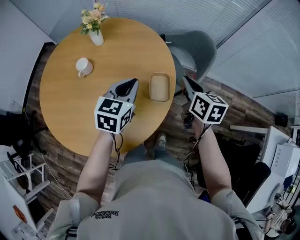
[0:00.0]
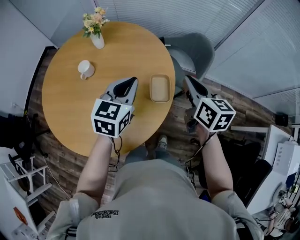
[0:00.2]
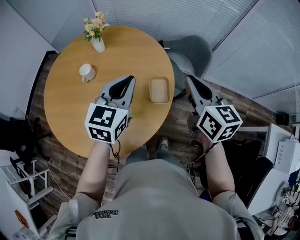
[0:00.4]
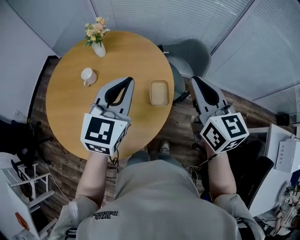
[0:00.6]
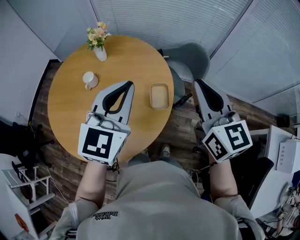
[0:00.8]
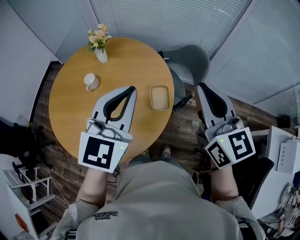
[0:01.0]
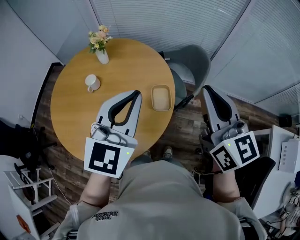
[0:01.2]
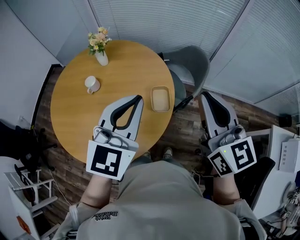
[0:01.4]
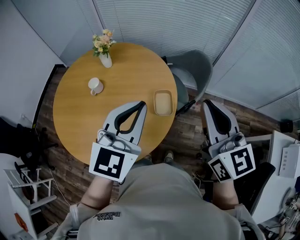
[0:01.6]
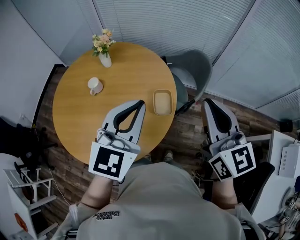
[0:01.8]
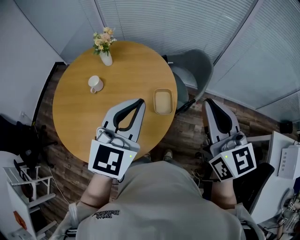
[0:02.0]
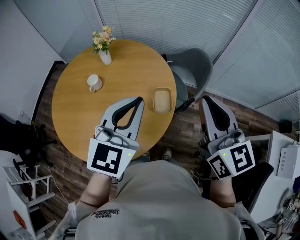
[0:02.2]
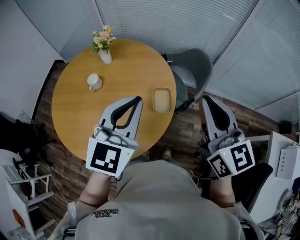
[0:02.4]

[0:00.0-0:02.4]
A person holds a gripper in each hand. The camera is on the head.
0:00.0 to 0:01.2: Both grippers move upward and backward, some 25 cm. The right gripper rotates roughly 30 degrees. The left gripper changes its angle by roughly 30 degrees.
0:01.2 to 0:02.4: The grippers stay close to where they were, moving slightly.

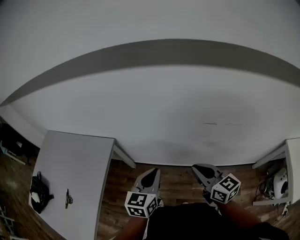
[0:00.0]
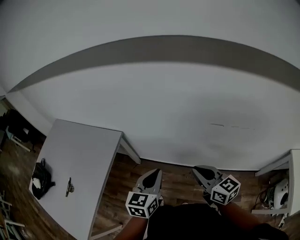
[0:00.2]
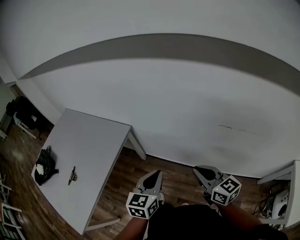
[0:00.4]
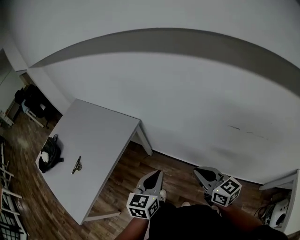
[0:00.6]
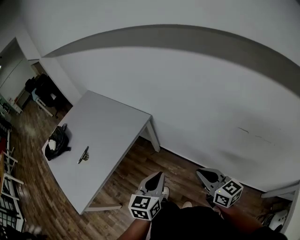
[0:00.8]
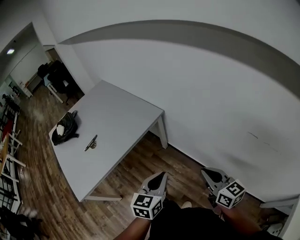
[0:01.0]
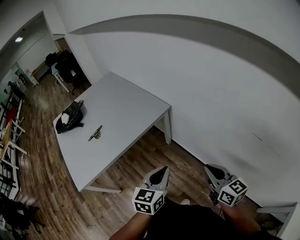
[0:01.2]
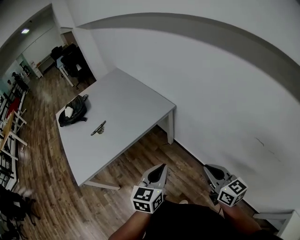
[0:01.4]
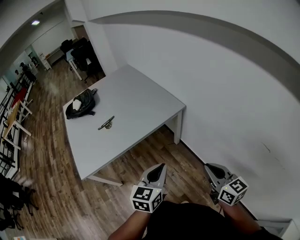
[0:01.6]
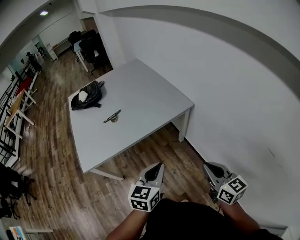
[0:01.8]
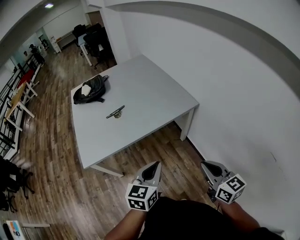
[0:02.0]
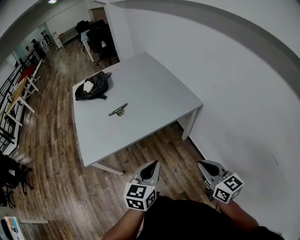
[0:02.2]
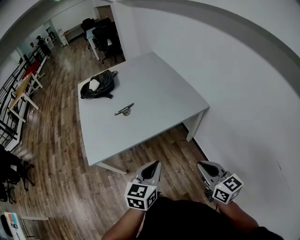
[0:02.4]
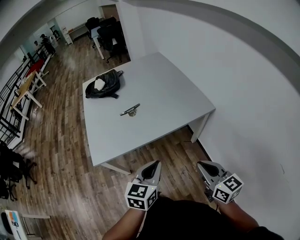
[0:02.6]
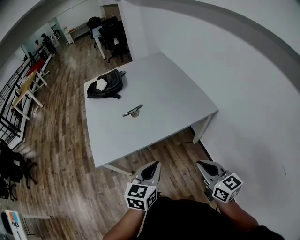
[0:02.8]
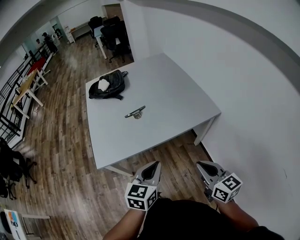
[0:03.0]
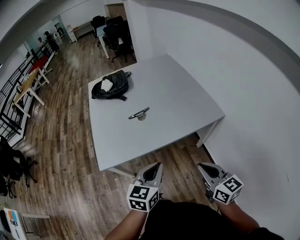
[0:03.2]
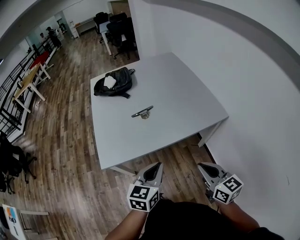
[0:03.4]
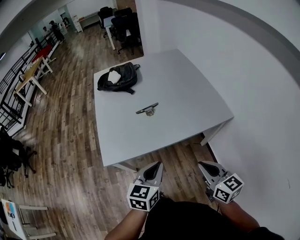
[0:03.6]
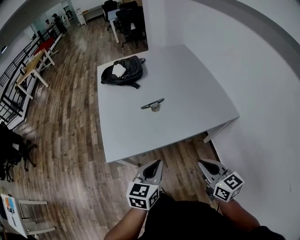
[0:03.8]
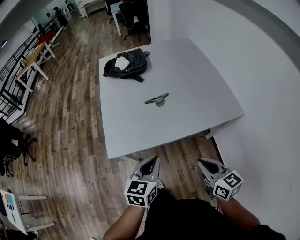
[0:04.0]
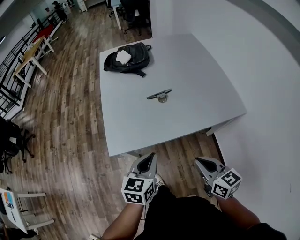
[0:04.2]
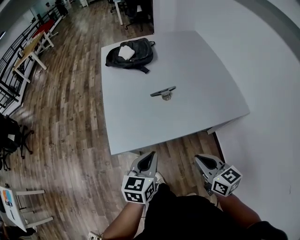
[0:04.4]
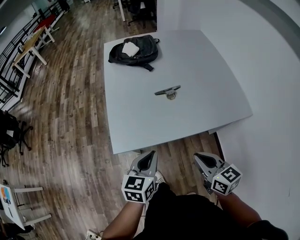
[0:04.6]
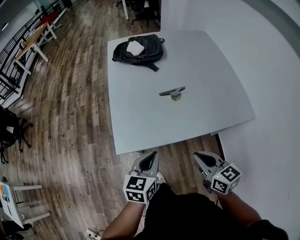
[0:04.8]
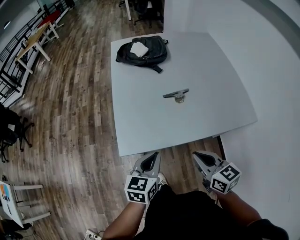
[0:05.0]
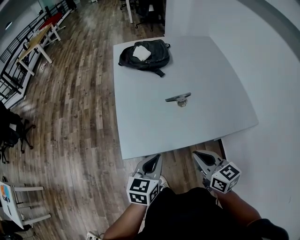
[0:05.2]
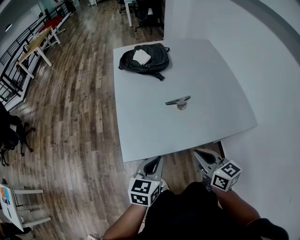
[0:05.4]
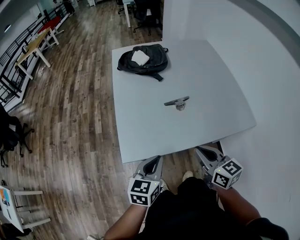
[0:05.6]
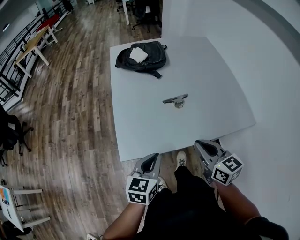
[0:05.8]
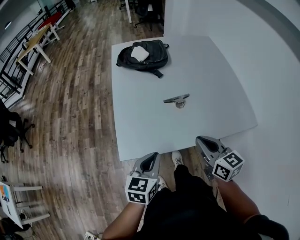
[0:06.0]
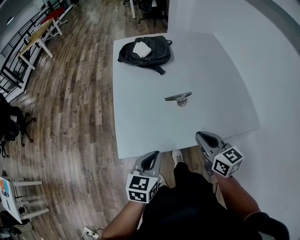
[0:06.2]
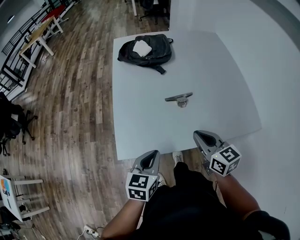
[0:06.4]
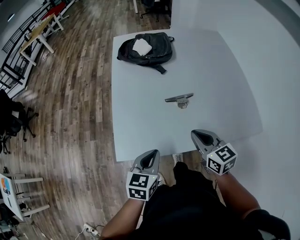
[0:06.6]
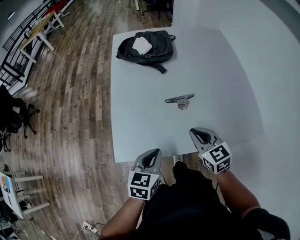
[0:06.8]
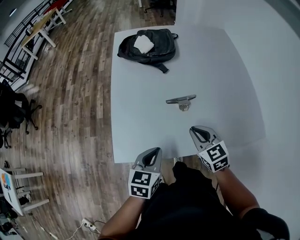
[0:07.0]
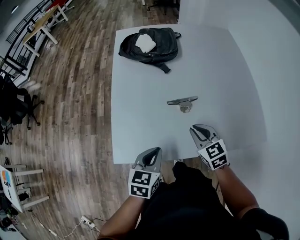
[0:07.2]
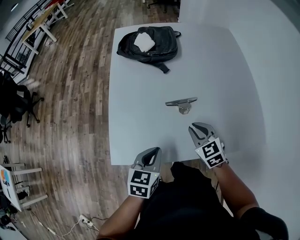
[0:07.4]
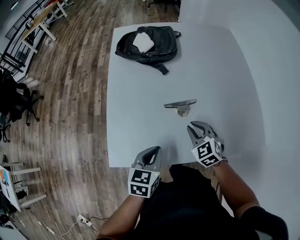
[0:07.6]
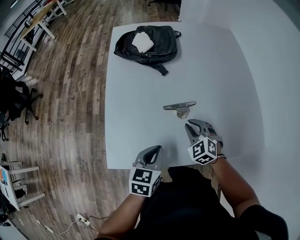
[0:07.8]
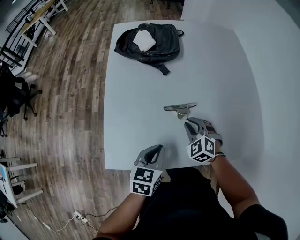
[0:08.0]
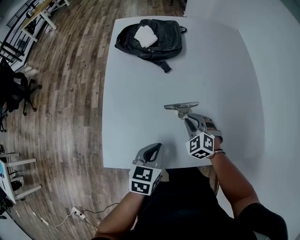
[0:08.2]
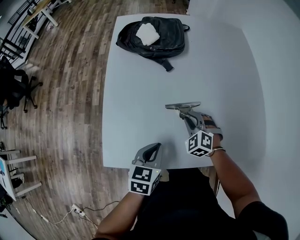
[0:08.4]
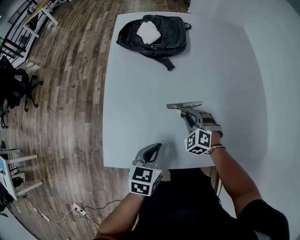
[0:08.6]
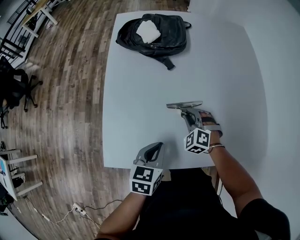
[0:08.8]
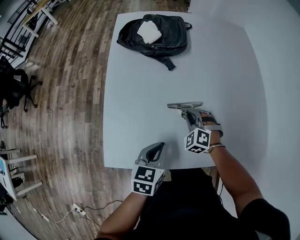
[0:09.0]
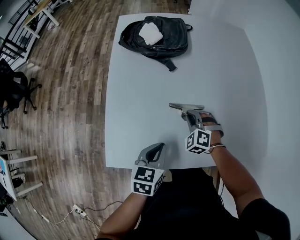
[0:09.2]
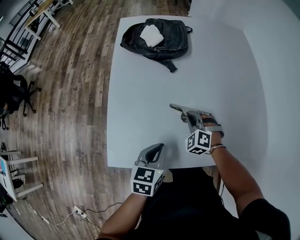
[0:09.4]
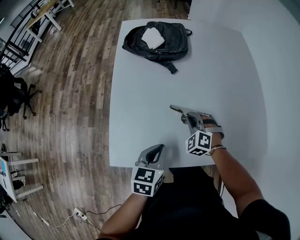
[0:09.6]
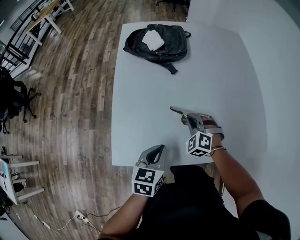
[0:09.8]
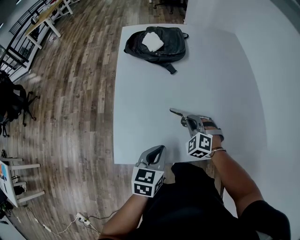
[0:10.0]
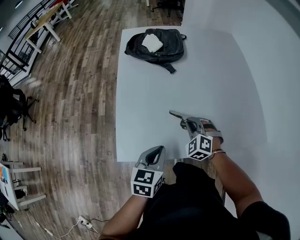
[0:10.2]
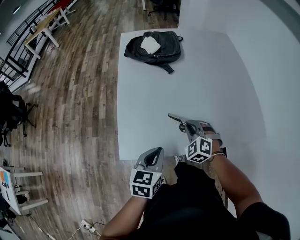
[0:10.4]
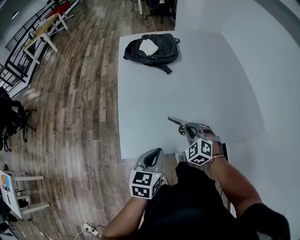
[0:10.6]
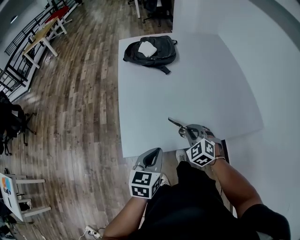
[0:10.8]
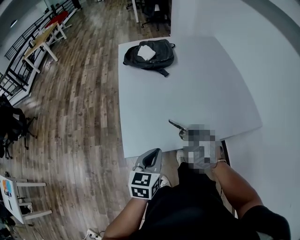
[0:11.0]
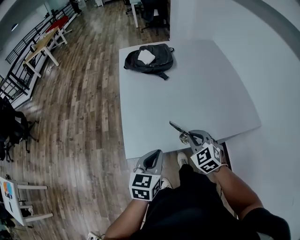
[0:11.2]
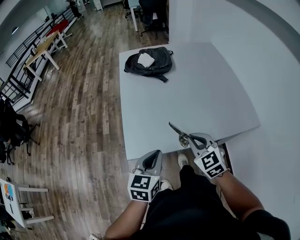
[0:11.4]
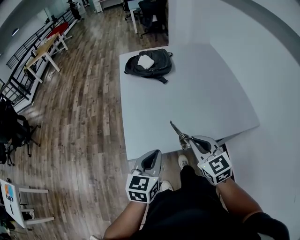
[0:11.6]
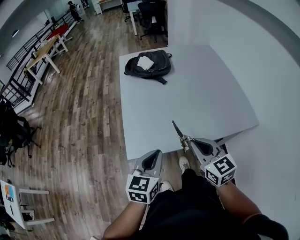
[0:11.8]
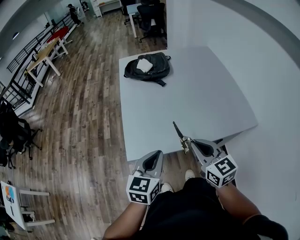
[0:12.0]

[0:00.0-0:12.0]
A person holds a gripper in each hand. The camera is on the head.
0:00.0 to 0:01.6: The right gripper changes place by roughly 15 cm, and rotates approximately 30 degrees. The left gripper changes place by some 25 cm, and turns by roughly 40 degrees.
0:01.6 to 0:03.0: The grippers both shift to the left and forward by approximately 20 cm.
0:03.0 to 0:04.4: The grippers both shift to the left, forward and downward by about 20 cm.
0:04.4 to 0:06.0: The right gripper travels forward by approximately 15 cm, while the left gripper shifts by about 5 cm.
0:06.0 to 0:07.6: The left gripper goes approximately 15 cm forward, downward and to the right, while the right gripper shifts approximately 25 cm forward and downward, and twists about 40 degrees counterclockwise, seen from behind.
0:07.6 to 0:09.0: The right gripper goes some 10 cm downward and forward, and swivels roughly 30 degrees. Meanwhile the left gripper shifts by some 5 cm.
0:09.0 to 0:10.4: Both grippers travel together backward and upward, some 15 cm.
0:10.4 to 0:12.0: The left gripper goes roughly 15 cm upward and backward, while the right gripper goes roughly 25 cm upward and backward, and twists some 50 degrees clockwise, seen from behind.

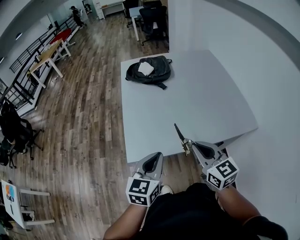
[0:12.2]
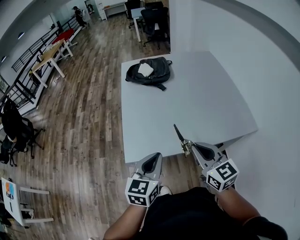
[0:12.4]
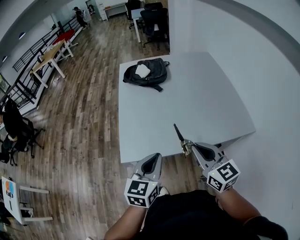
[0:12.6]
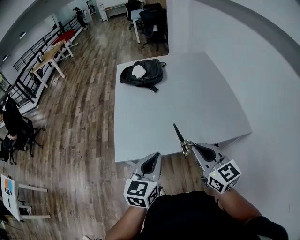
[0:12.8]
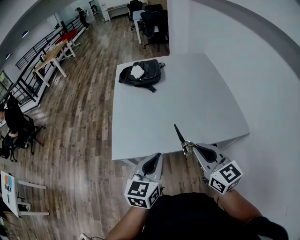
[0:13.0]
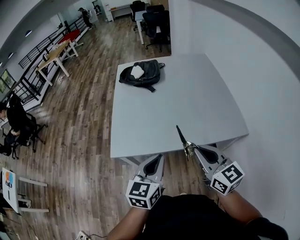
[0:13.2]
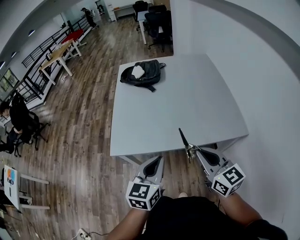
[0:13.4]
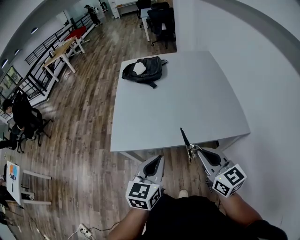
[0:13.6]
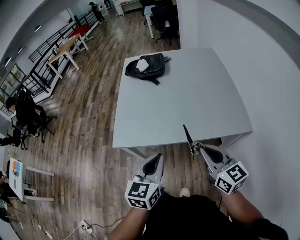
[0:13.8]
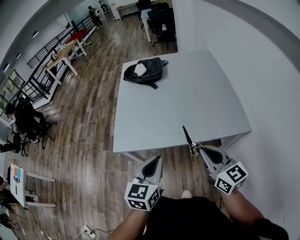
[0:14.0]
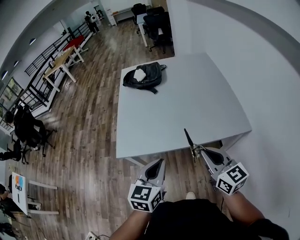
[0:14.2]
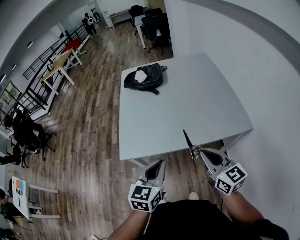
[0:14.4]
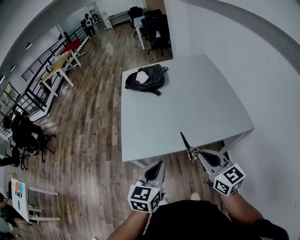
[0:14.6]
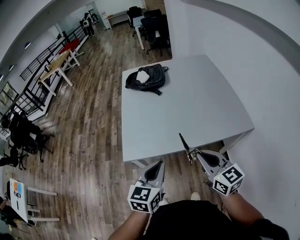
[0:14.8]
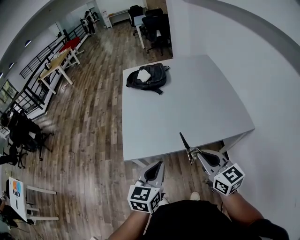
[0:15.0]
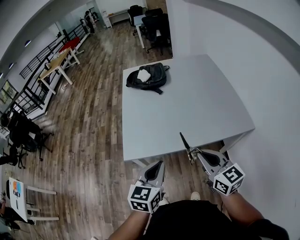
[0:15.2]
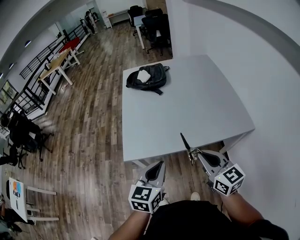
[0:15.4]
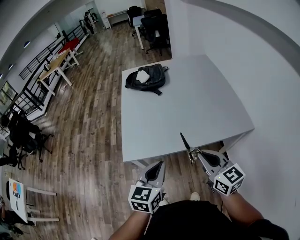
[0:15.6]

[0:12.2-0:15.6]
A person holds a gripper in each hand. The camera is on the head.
0:12.2 to 0:13.8: The grippers both shift to the right and backward by approximately 20 cm.
0:13.8 to 0:15.6: The two grippers go approximately 10 cm to the left.

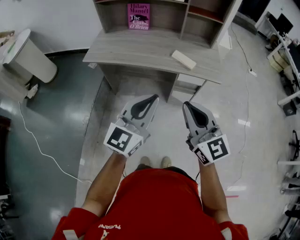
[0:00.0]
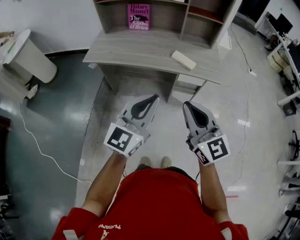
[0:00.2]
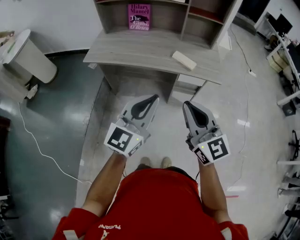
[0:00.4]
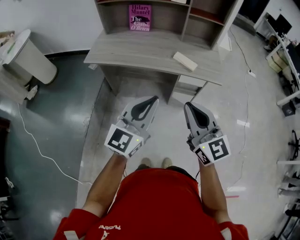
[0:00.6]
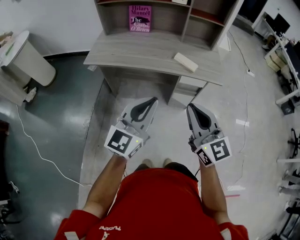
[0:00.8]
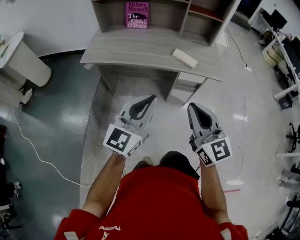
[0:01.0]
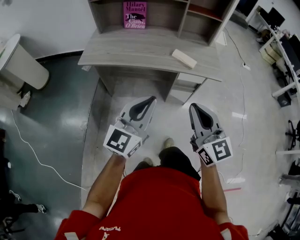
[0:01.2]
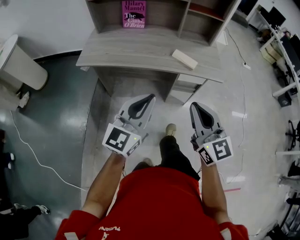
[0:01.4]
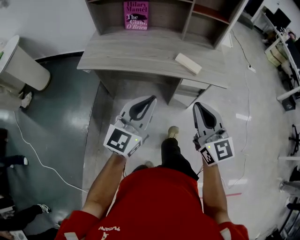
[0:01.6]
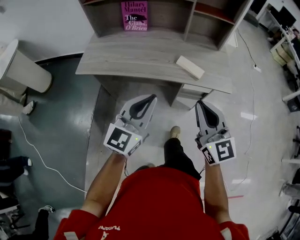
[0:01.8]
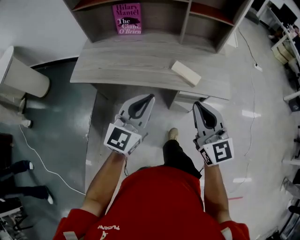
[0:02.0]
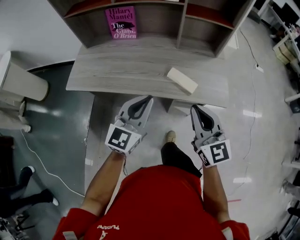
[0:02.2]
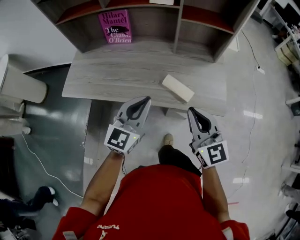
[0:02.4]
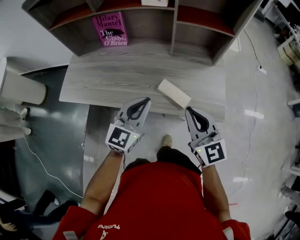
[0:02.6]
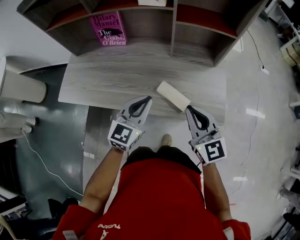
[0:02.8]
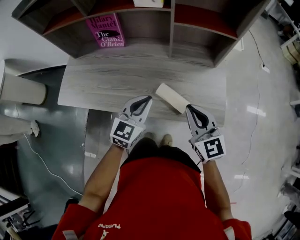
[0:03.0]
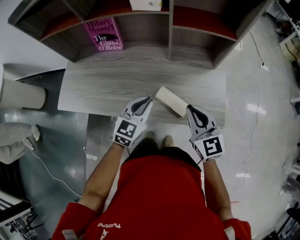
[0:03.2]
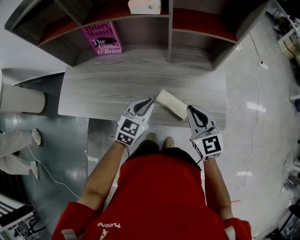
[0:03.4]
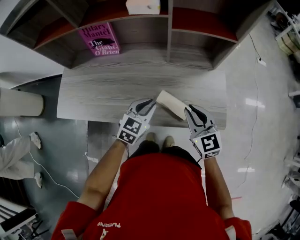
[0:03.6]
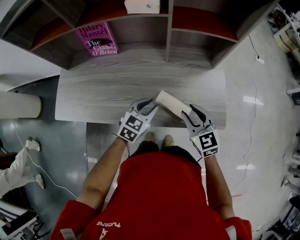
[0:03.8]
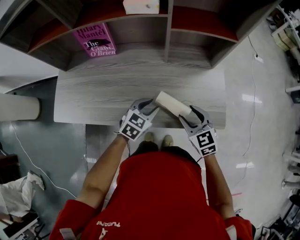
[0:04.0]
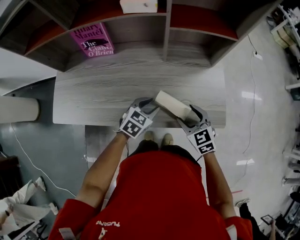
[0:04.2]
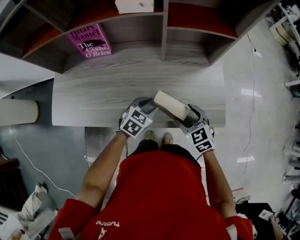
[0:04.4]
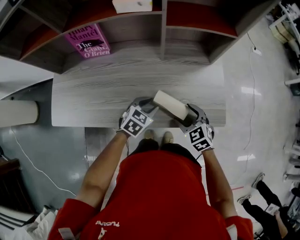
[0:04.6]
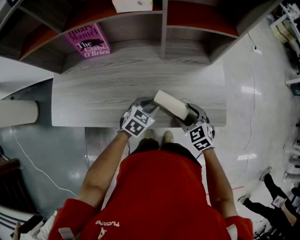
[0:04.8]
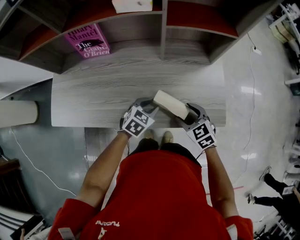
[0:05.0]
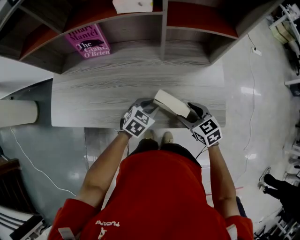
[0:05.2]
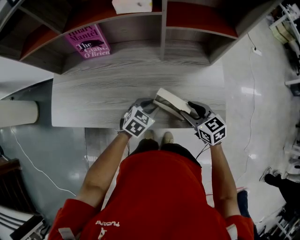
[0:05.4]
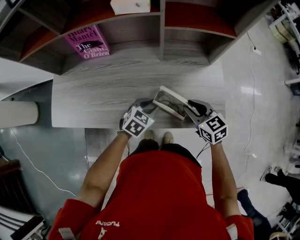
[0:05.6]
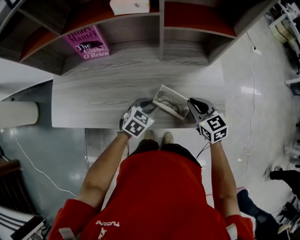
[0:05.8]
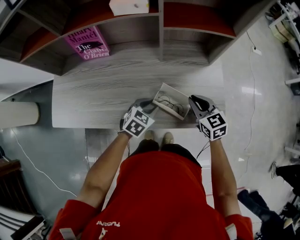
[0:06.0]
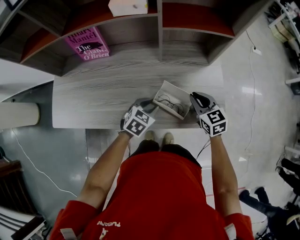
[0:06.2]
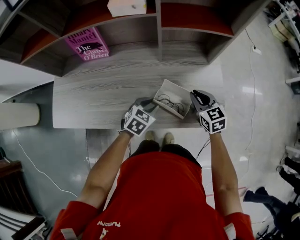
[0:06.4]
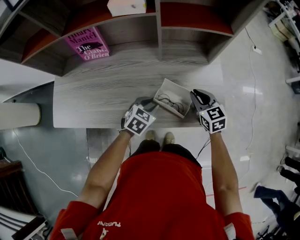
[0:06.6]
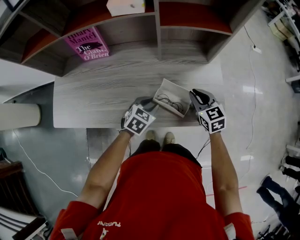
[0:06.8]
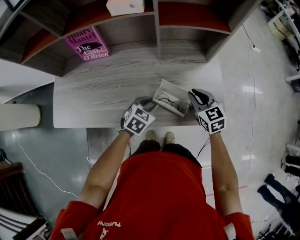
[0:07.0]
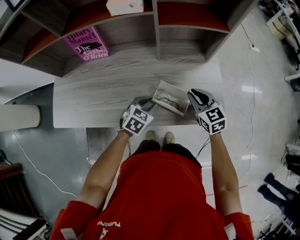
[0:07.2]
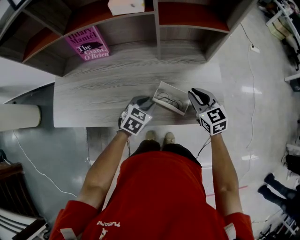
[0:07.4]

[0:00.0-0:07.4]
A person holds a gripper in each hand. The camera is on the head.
0:00.0 to 0:01.4: The left gripper heads to the left, covering roughly 5 cm.
0:01.4 to 0:03.0: The right gripper travels forward by some 35 cm. The left gripper goes approximately 40 cm forward and downward, and rotates roughly 20 degrees.
0:03.0 to 0:04.4: The grippers both shift downward by about 15 cm. The right gripper rotates some 30 degrees, and opens up. The left gripper swivels about 30 degrees, and opens its fingers.
0:04.4 to 0:06.0: The right gripper travels forward by about 5 cm, and closes.
0:06.0 to 0:07.4: The grippers make only small movements.
